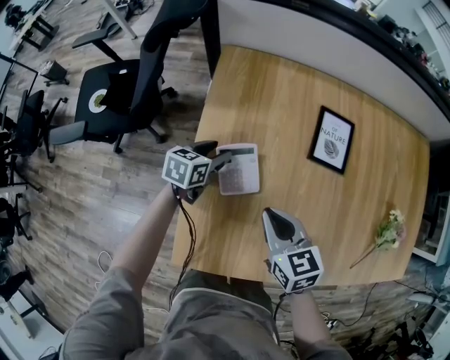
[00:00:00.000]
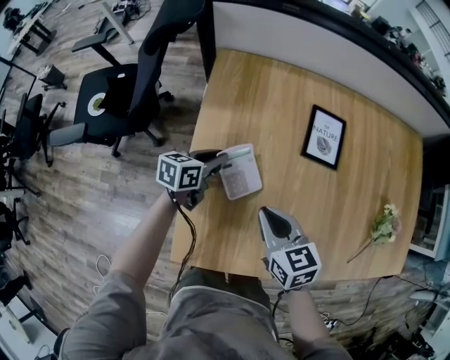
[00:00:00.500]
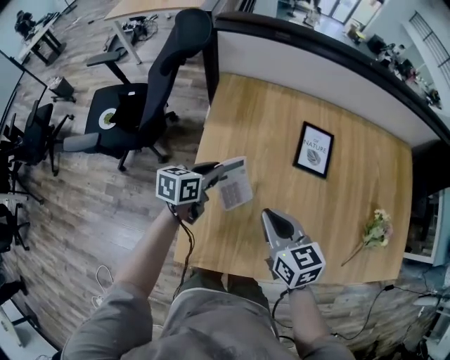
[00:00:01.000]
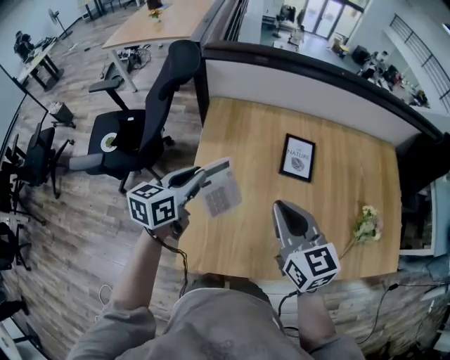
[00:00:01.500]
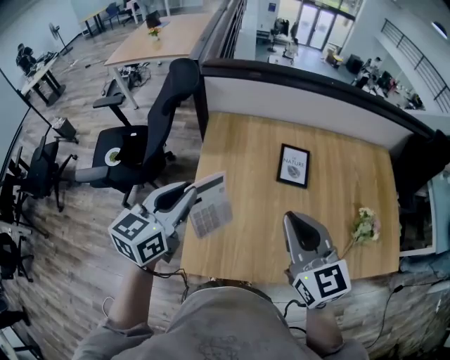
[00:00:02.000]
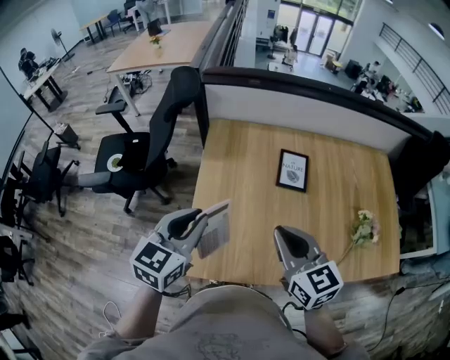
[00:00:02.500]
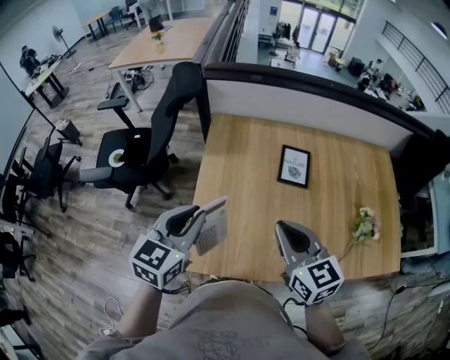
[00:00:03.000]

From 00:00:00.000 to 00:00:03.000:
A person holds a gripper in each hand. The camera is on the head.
From 00:00:00.000 to 00:00:01.500: The grippers both shift upward by approximately 25 cm. The right gripper swivels about 20 degrees. Meanwhile the left gripper rotates roughly 20 degrees, and closes its fingers.
From 00:00:01.500 to 00:00:03.000: The left gripper travels backward and upward by roughly 15 cm, and rotates some 20 degrees. Meanwhile the right gripper shifts approximately 5 cm backward.

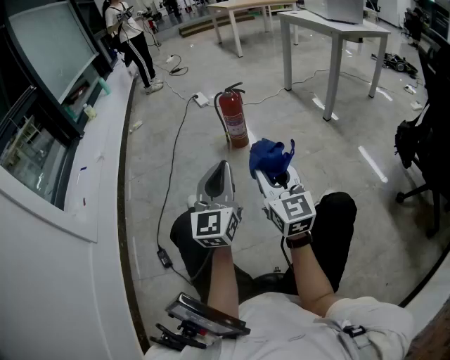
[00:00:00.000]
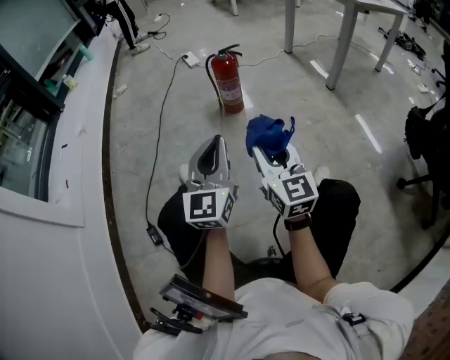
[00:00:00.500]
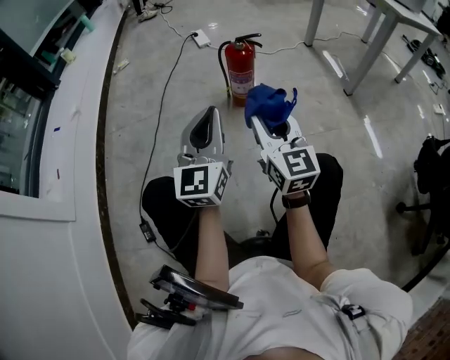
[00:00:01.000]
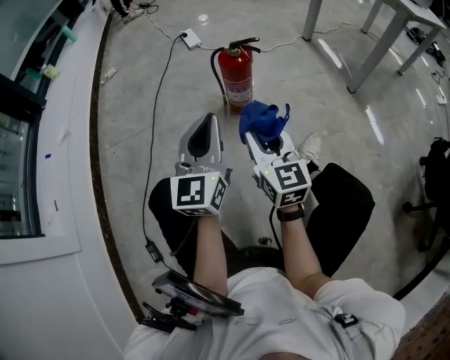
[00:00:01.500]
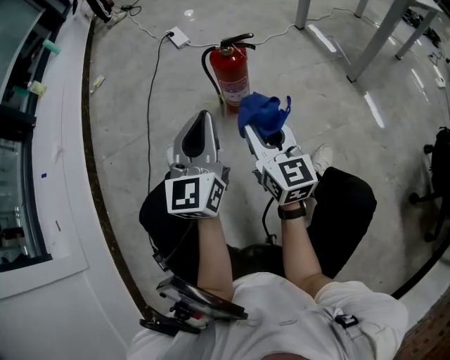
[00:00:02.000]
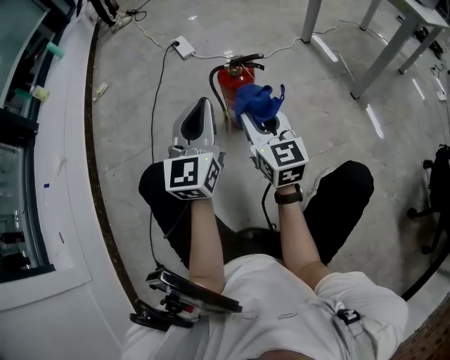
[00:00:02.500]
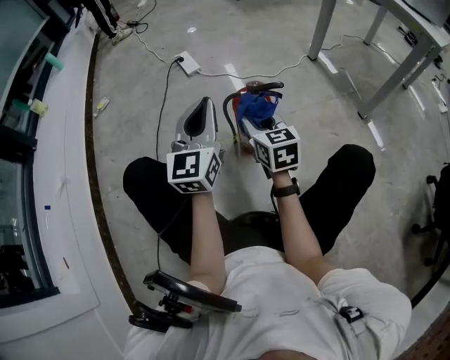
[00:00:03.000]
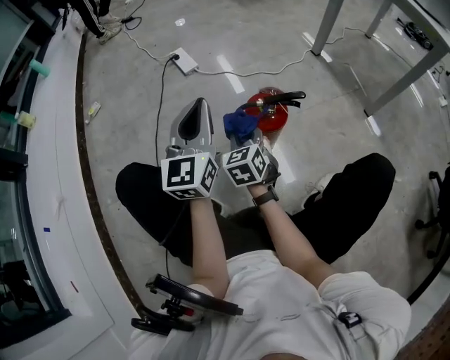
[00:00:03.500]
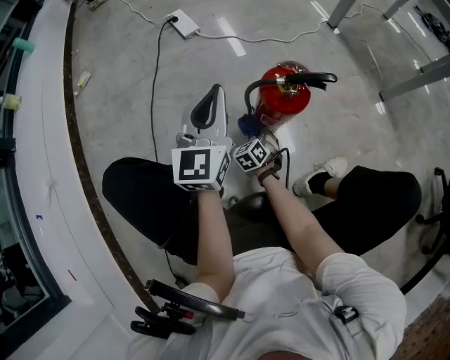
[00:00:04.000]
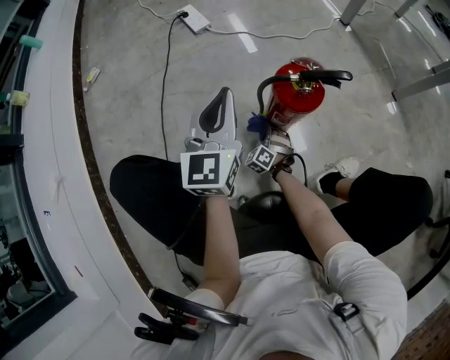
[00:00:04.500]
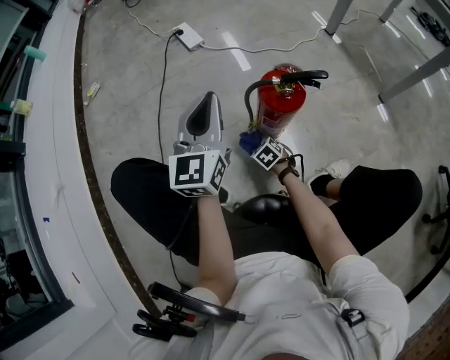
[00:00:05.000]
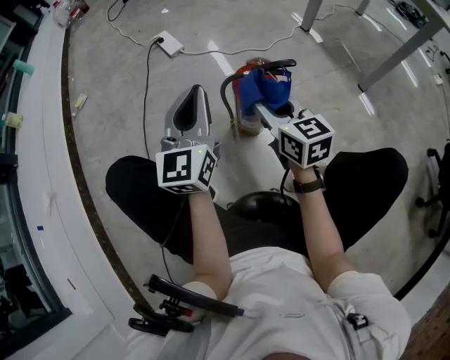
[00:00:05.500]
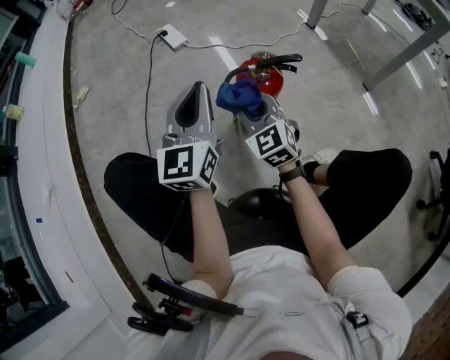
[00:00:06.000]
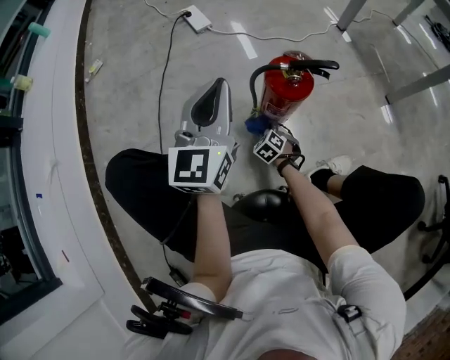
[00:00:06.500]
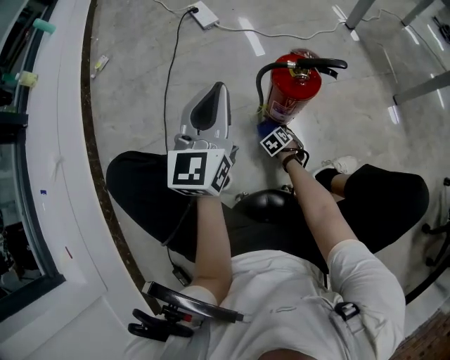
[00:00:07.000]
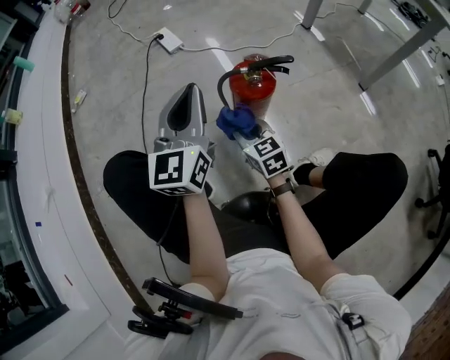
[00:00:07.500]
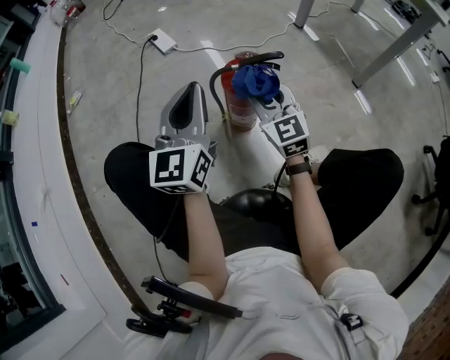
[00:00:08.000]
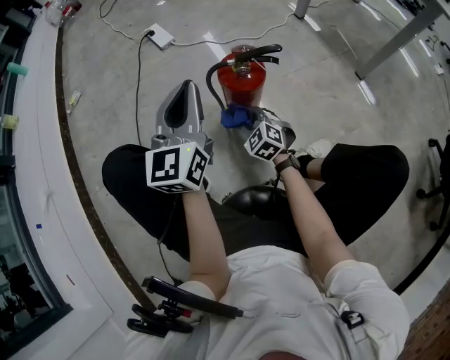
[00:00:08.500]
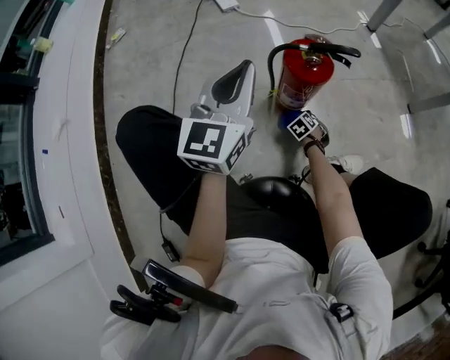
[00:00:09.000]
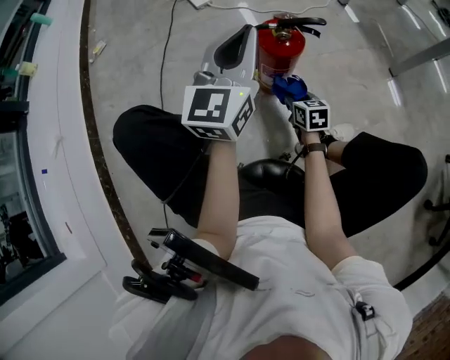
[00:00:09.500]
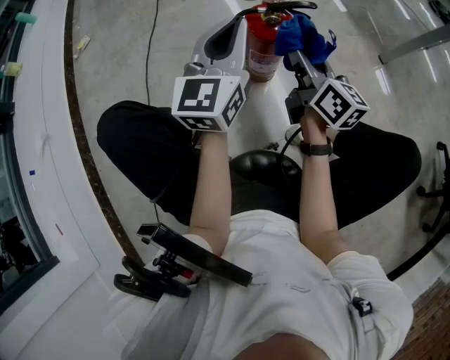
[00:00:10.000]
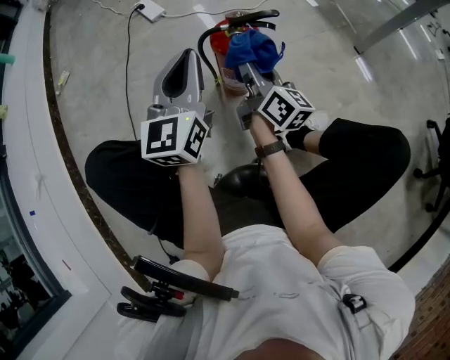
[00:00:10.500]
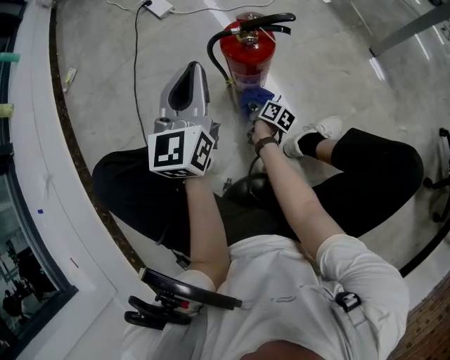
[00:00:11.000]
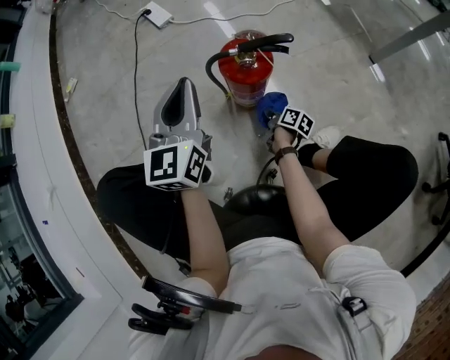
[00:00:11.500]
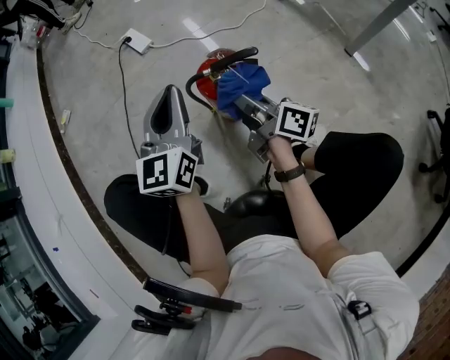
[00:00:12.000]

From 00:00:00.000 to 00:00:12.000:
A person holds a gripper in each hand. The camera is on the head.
From 00:00:00.000 to 00:00:02.000: The two grippers go some 35 cm forward.
From 00:00:02.000 to 00:00:04.000: The right gripper shifts approximately 50 cm downward and forward, and tips its fingers downward by about 50 degrees, while the left gripper travels forward by roughly 30 cm.
From 00:00:04.000 to 00:00:06.000: The right gripper moves up and down over some 40 cm, changing direction 2 times, and angles its fingers upward, by some 30 degrees. Meanwhile the left gripper goes approximately 5 cm backward.
From 00:00:06.000 to 00:00:08.000: The right gripper shifts about 10 cm to the right, and reaches approximately 40 cm downward, then returns.
From 00:00:08.000 to 00:00:10.000: The right gripper reaches approximately 40 cm downward, then returns, and twists some 50 degrees clockwise, seen from behind.
From 00:00:10.000 to 00:00:12.000: The left gripper moves forward, some 5 cm. Meanwhile the right gripper travels downward and back again, some 40 cm each way, and swivels roughly 30 degrees.

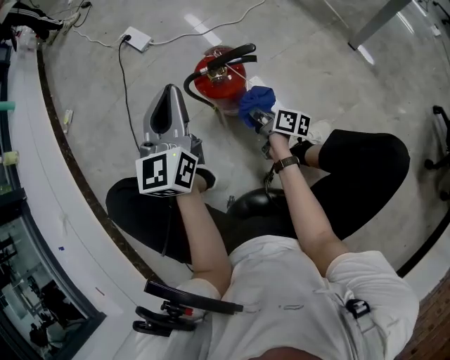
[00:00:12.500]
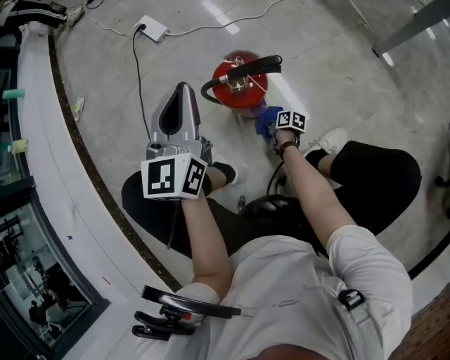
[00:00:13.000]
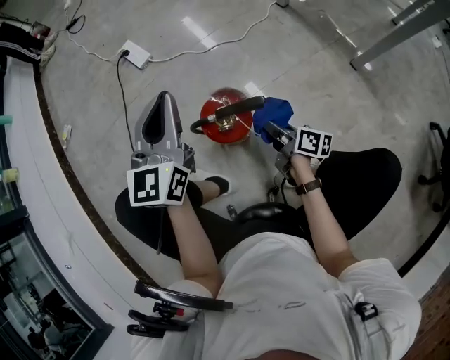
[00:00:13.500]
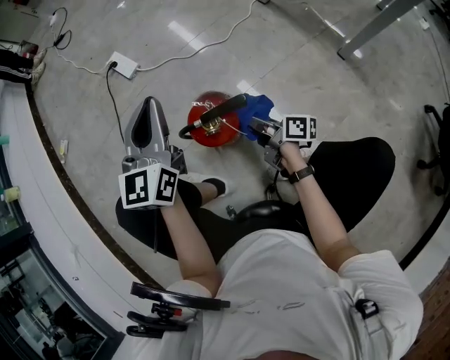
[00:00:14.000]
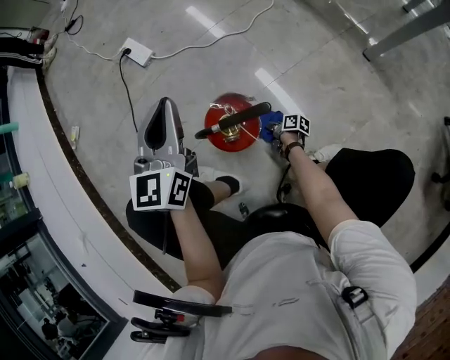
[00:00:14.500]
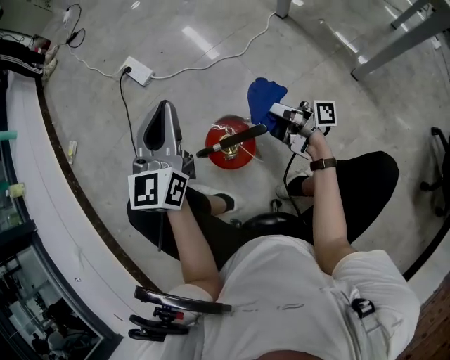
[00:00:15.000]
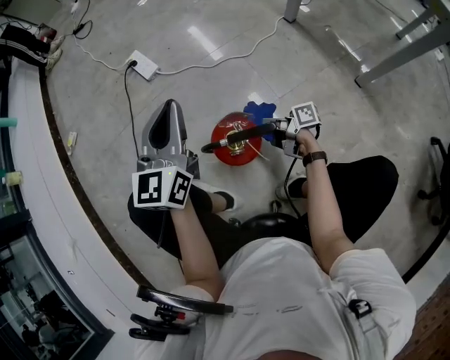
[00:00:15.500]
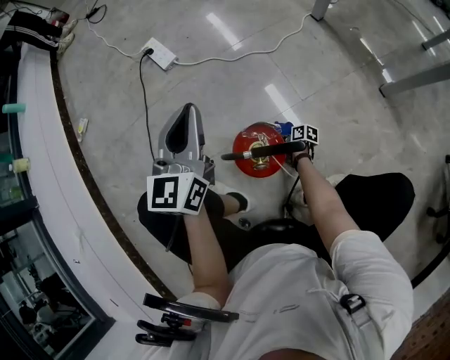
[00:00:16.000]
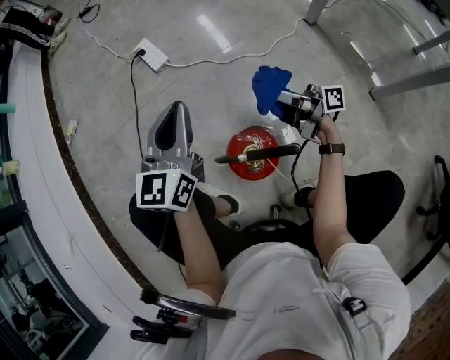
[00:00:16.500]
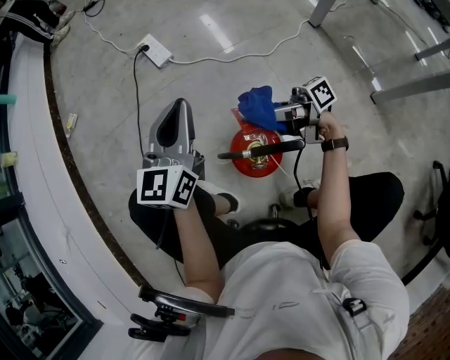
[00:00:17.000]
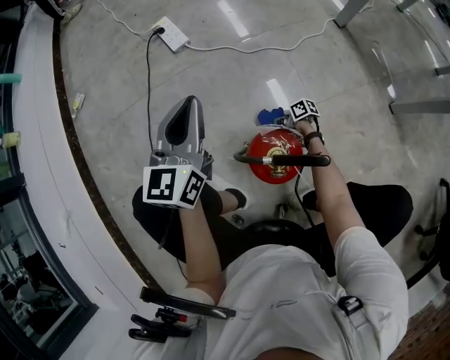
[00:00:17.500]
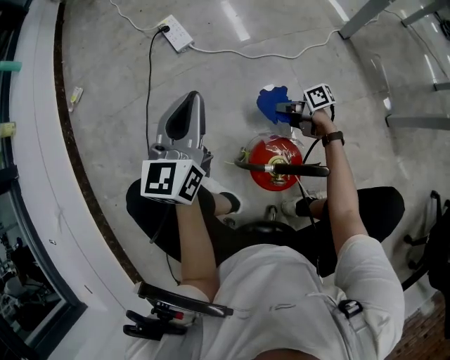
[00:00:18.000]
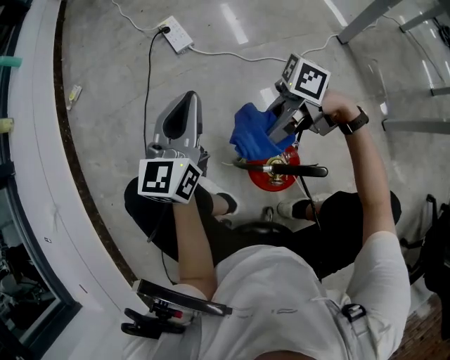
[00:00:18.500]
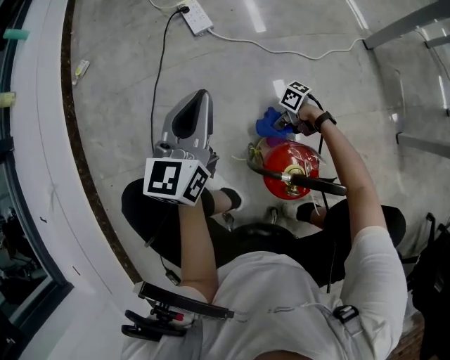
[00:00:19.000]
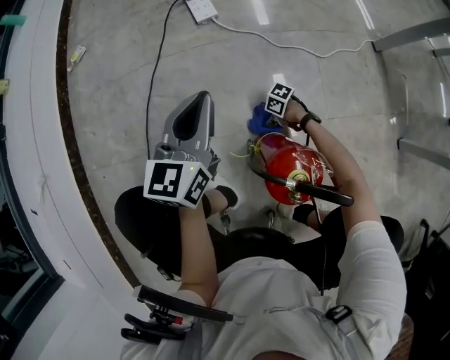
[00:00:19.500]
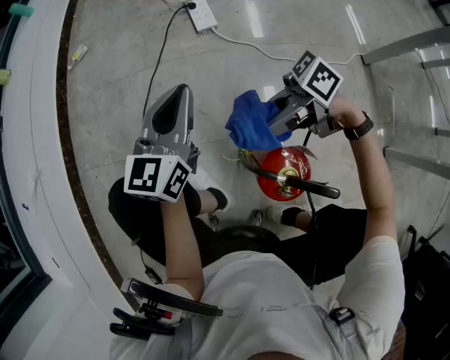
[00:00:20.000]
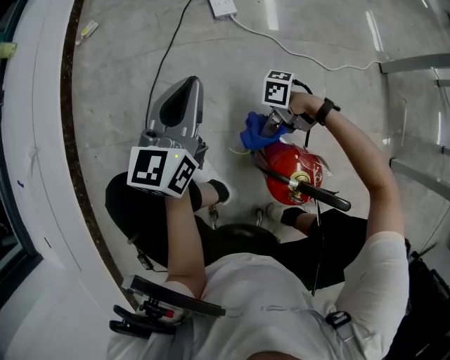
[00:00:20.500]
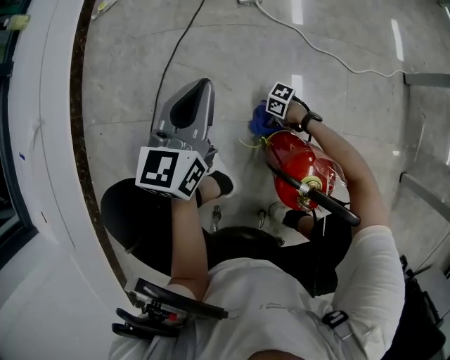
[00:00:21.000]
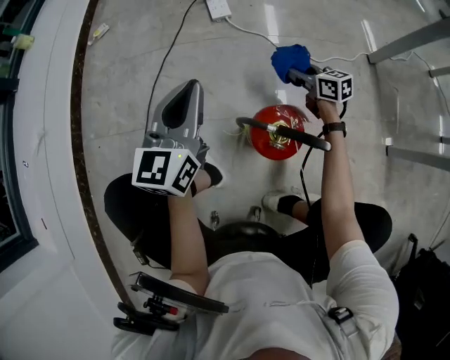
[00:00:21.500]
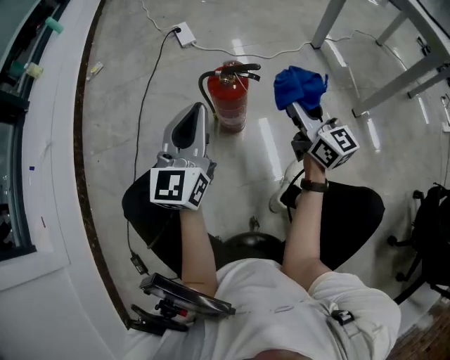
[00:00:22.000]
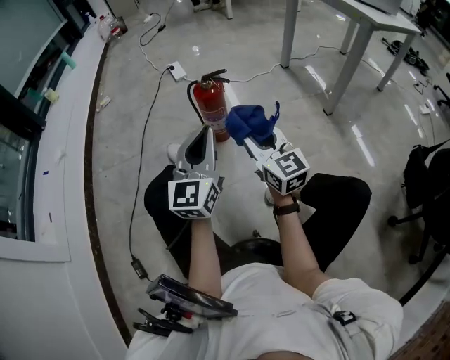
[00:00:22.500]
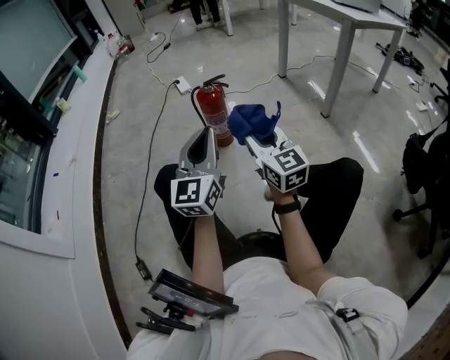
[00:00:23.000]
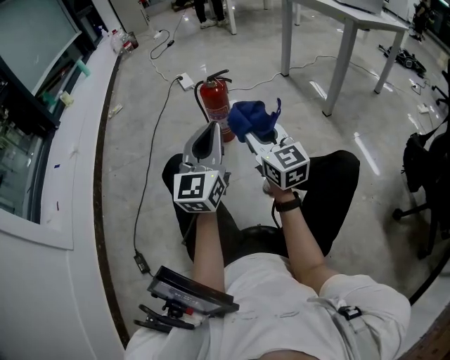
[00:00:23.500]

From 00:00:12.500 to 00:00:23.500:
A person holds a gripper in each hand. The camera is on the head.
From 00:00:12.500 to 00:00:14.500: The left gripper is displaced forward by roughly 10 cm, while the right gripper goes up and down, some 30 cm each way, reversing 2 times, and rotates roughly 30 degrees.
From 00:00:14.500 to 00:00:16.000: The right gripper travels upward and back again, some 40 cm each way.
From 00:00:16.000 to 00:00:18.000: The right gripper swings up and down, about 40 cm each way, with 2 reversals, and points its fingers approximately 30 degrees further upward. Meanwhile the left gripper shifts roughly 5 cm forward.
From 00:00:18.000 to 00:00:20.000: The right gripper swings up and down, some 40 cm each way, with 2 reversals, and rotates roughly 60 degrees, while the left gripper ends up approximately 10 cm from where it was.
From 00:00:20.000 to 00:00:21.500: The right gripper moves approximately 40 cm downward and comes back, and turns by approximately 70 degrees. The left gripper reaches some 5 cm downward, then returns.
From 00:00:21.500 to 00:00:23.500: The two grippers travel together, backward, some 60 cm. The right gripper travels upward by some 30 cm, and rotates approximately 50 degrees, while the left gripper turns by some 20 degrees.
